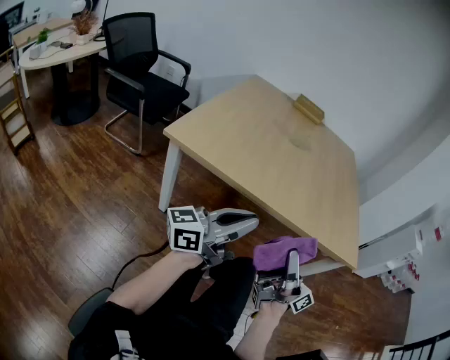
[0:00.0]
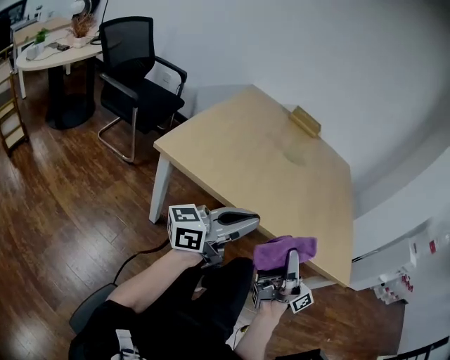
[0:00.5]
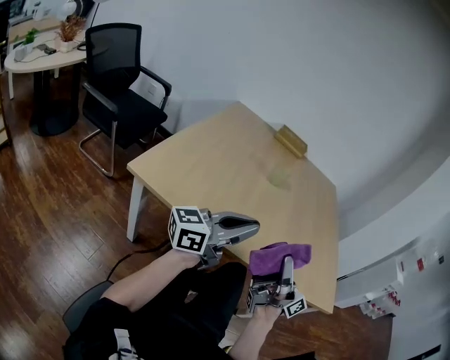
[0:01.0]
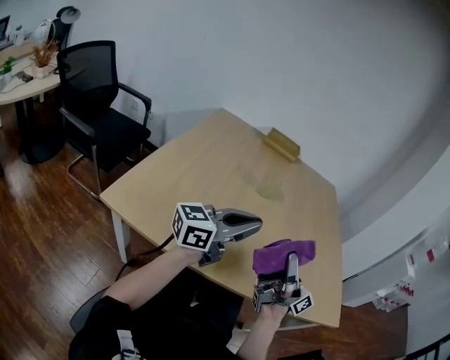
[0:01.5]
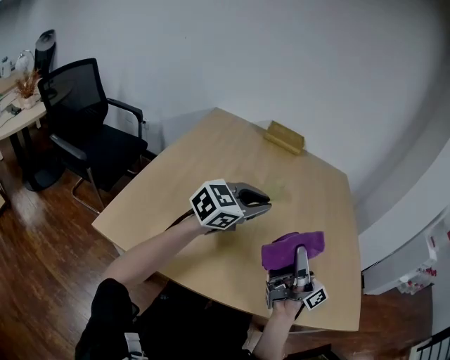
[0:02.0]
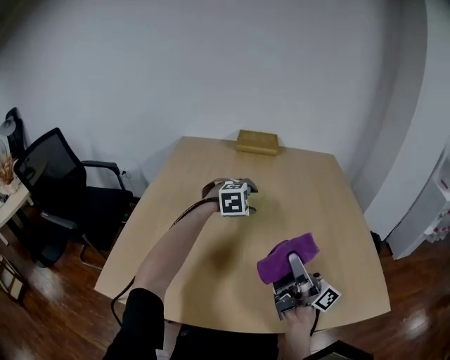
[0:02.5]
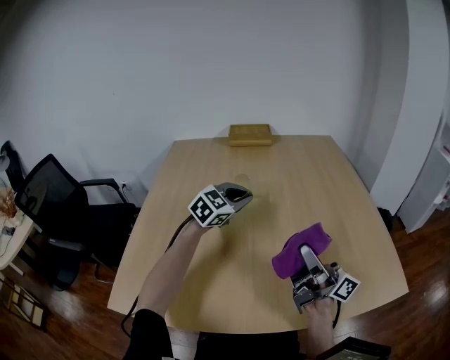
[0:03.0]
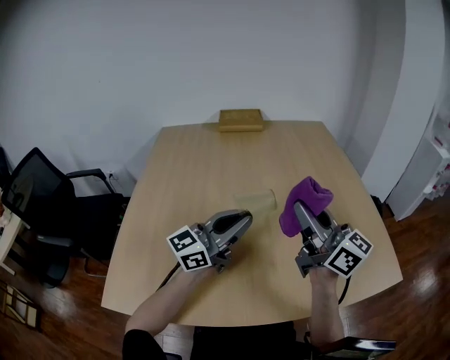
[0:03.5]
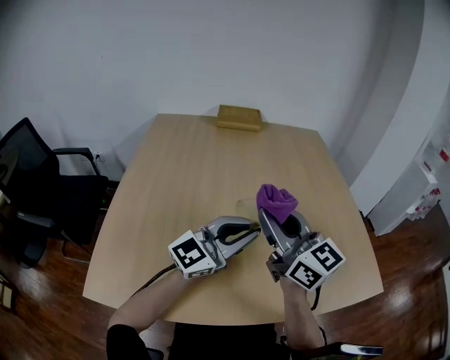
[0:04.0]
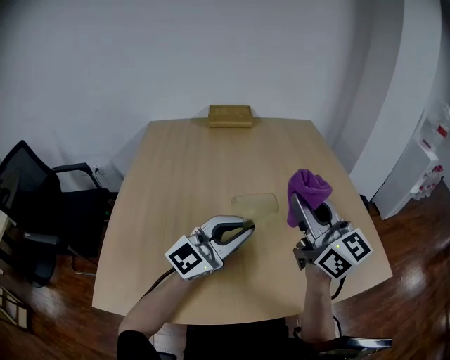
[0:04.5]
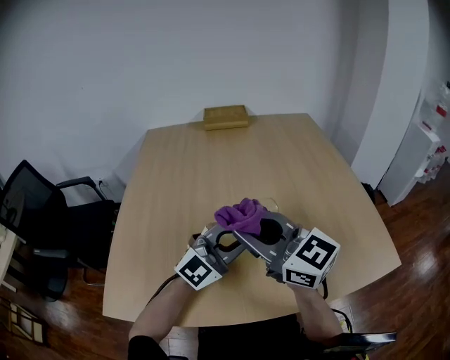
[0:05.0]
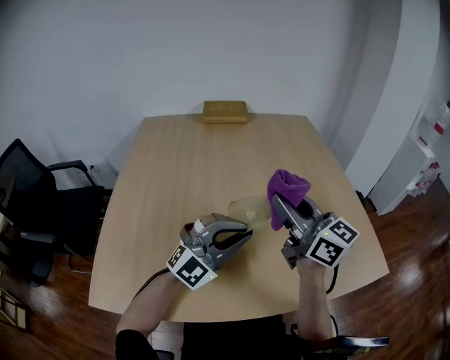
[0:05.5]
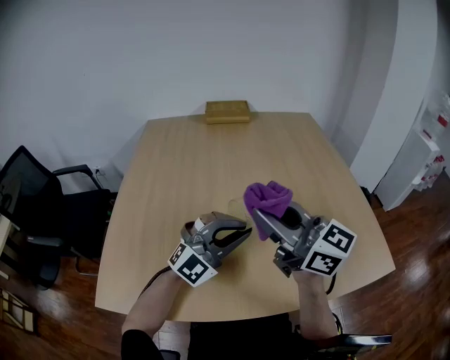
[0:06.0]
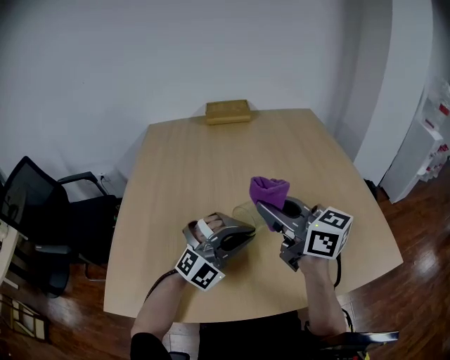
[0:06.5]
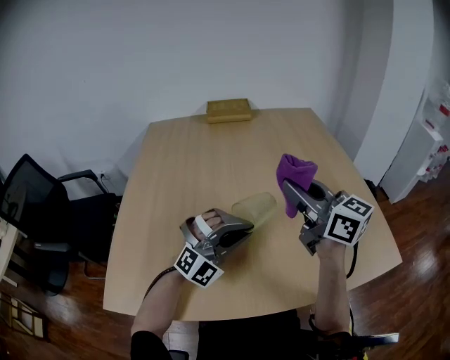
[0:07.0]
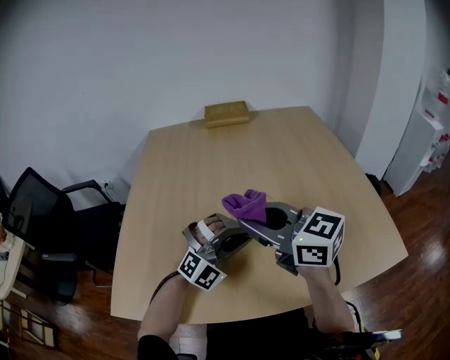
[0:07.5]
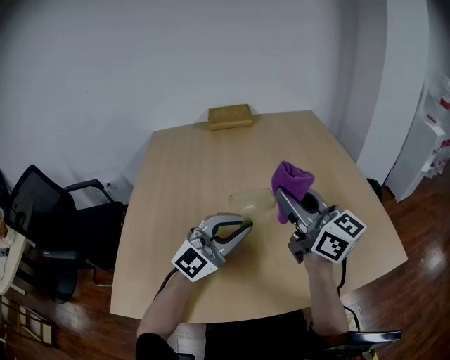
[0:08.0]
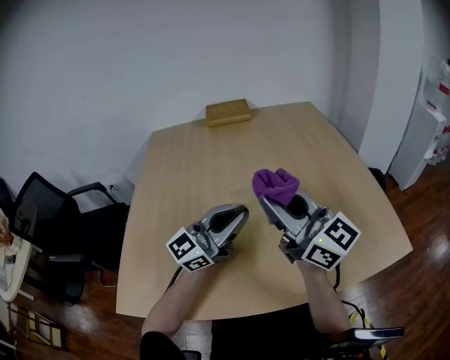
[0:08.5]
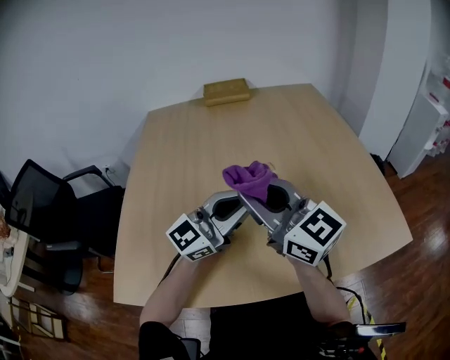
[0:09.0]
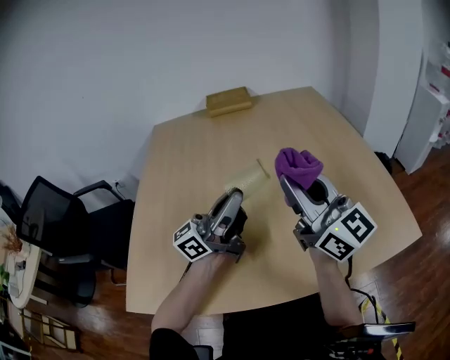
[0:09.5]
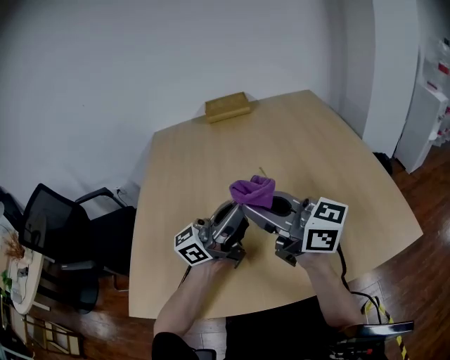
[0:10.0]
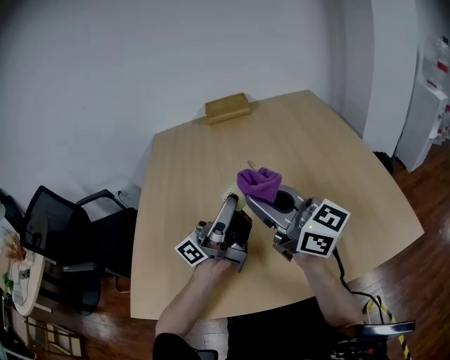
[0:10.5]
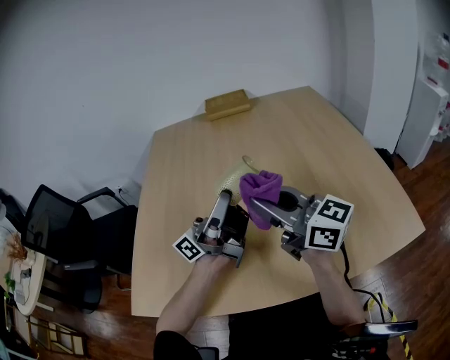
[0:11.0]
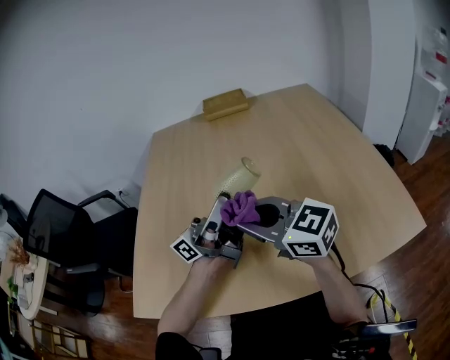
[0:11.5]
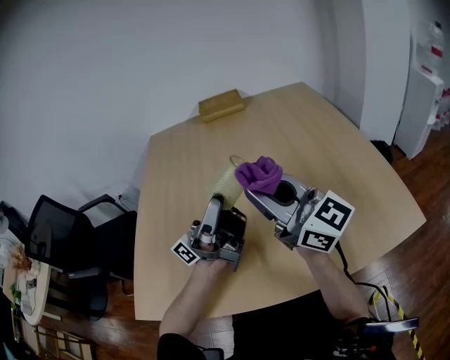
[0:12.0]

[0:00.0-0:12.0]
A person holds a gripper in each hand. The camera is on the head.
0:00.0 to 0:02.0: The grippers both shift forward by about 35 cm. The left gripper angles its fingers downward, by approximately 40 degrees.
0:02.0 to 0:04.0: The right gripper is displaced to the left, upward and forward by some 10 cm, and twists approximately 50 degrees counterclockwise, seen from behind. The left gripper goes forward and returns, some 15 cm each way, rotates about 30 degrees, and opens, then closes once more.
0:04.0 to 0:06.0: The right gripper moves left and right over roughly 10 cm, changing direction 3 times; the left gripper moves downward, roughly 5 cm, and swivels approximately 40 degrees.
0:06.0 to 0:08.0: The right gripper goes left and right, some 10 cm each way, reversing 2 times.
0:08.0 to 0:10.0: The left gripper shifts by some 5 cm, and twists about 60 degrees counterclockwise, seen from behind. Meanwhile the right gripper goes left and right, roughly 10 cm each way, reversing 2 times, and changes its angle by some 20 degrees.
0:10.0 to 0:12.0: The left gripper changes place by about 5 cm, and swivels about 30 degrees.

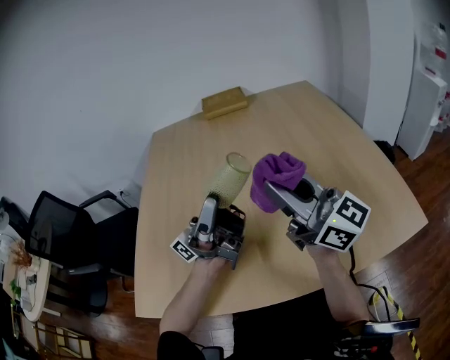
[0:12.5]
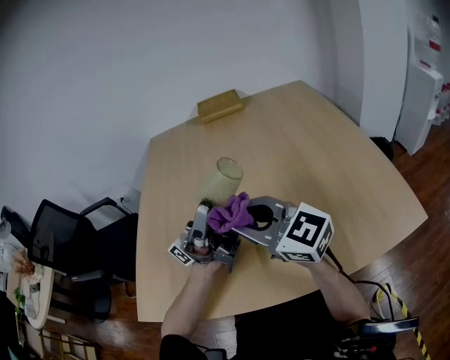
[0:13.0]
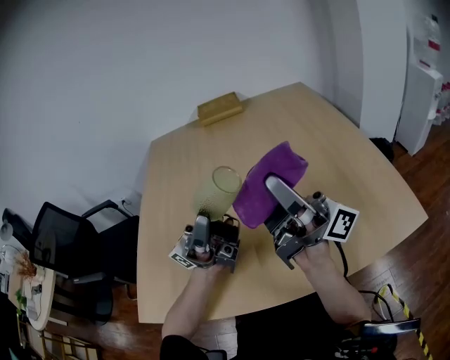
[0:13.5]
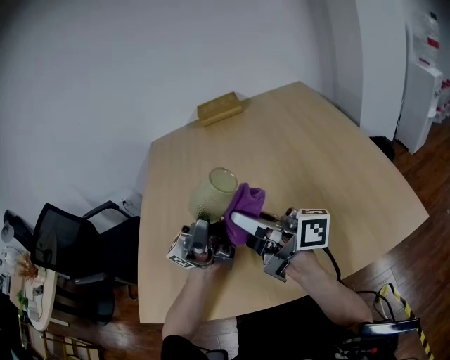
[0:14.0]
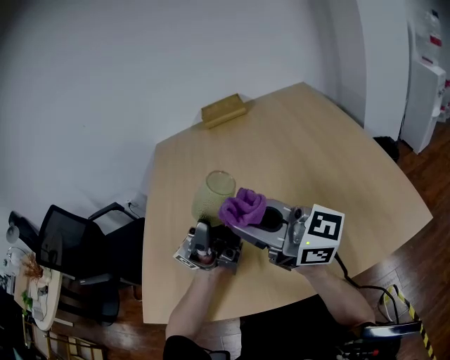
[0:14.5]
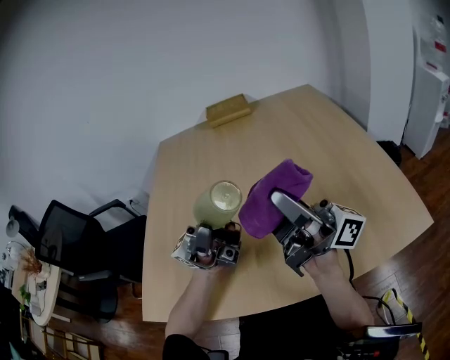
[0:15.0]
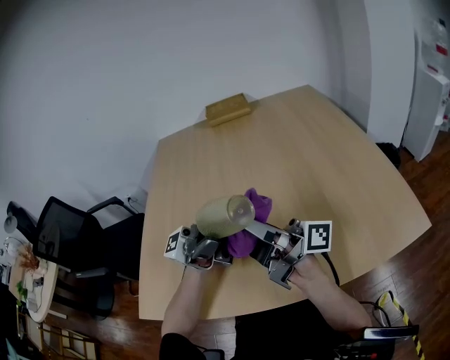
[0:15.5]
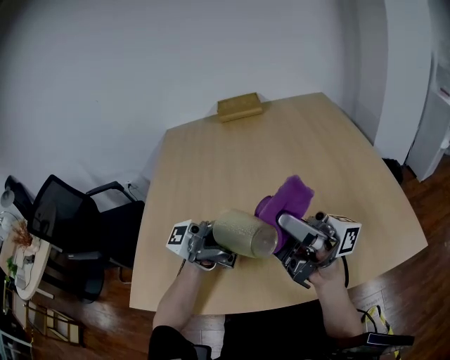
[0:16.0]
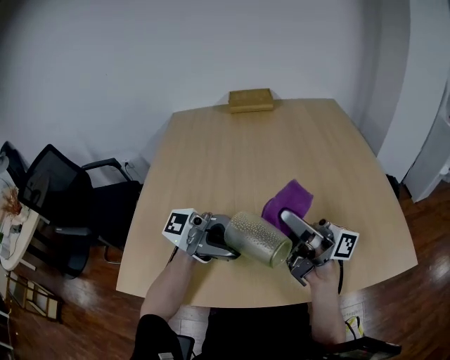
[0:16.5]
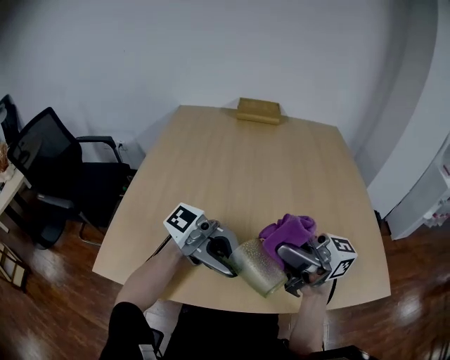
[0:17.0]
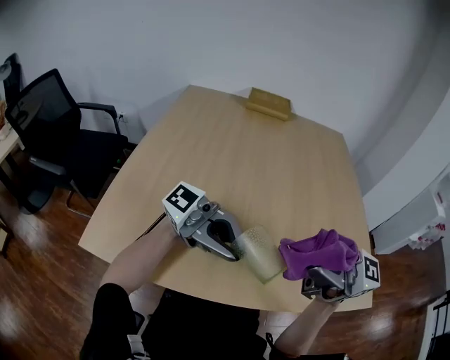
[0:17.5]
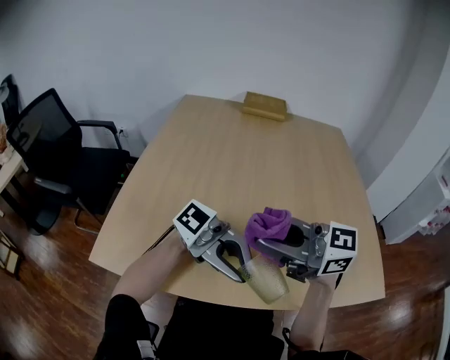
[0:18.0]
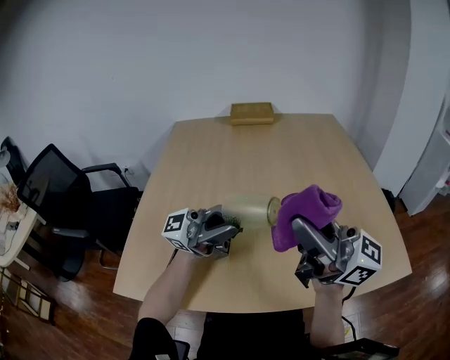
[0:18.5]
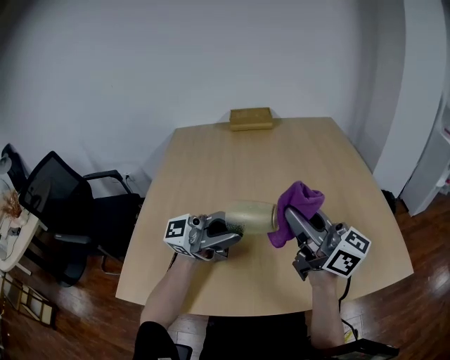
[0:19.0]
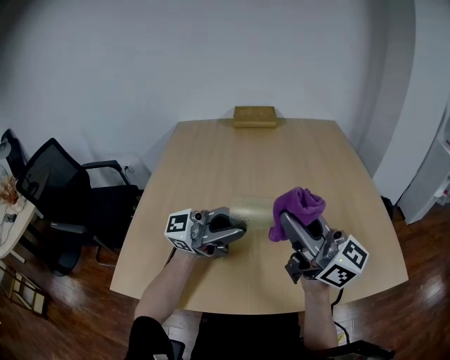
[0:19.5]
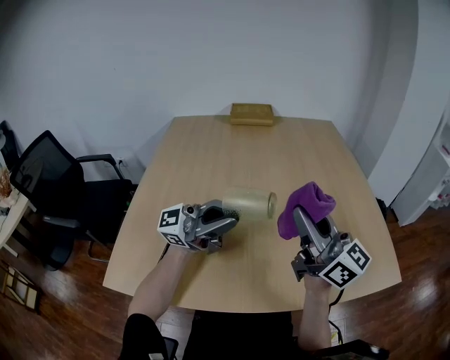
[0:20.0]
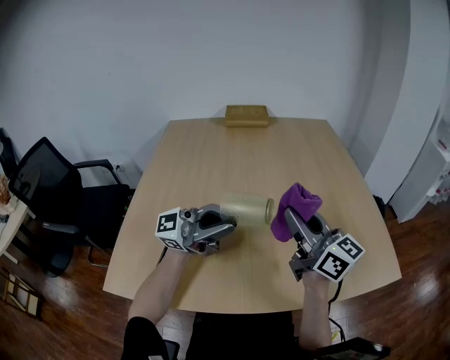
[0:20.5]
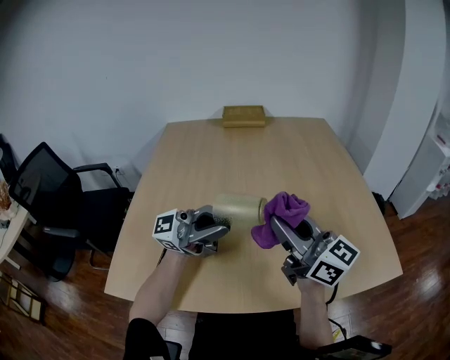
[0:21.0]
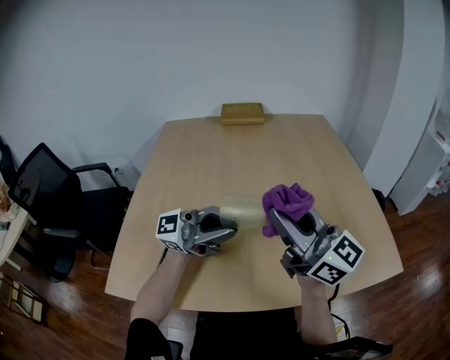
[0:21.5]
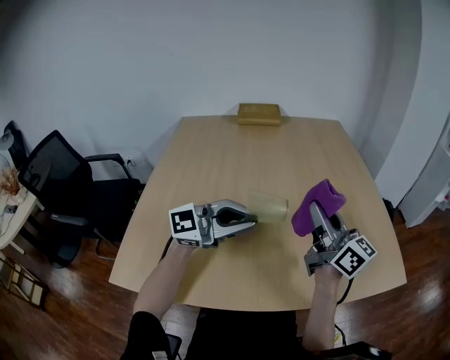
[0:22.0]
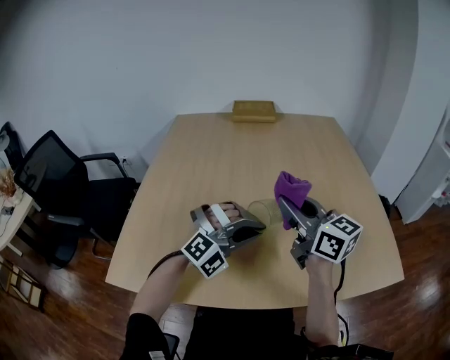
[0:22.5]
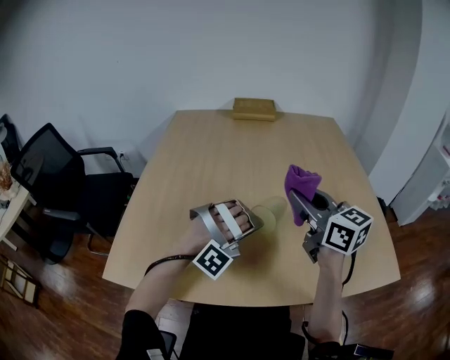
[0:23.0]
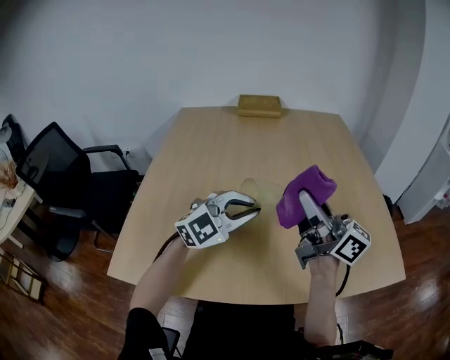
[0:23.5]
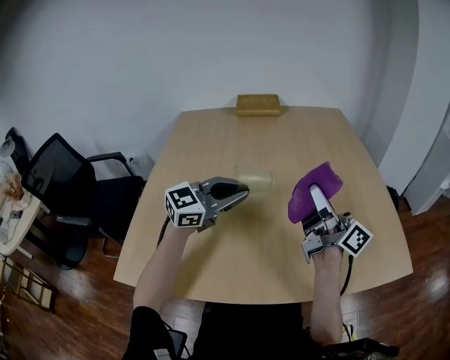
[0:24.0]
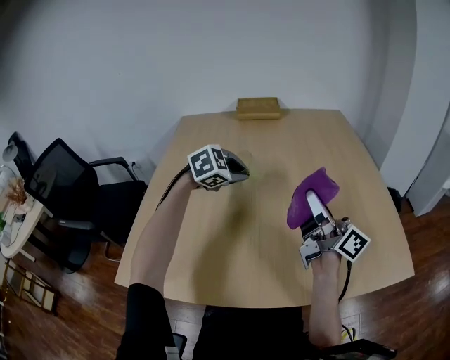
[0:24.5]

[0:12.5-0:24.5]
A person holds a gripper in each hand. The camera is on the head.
0:12.5 to 0:14.5: The right gripper moves up and down over roughly 10 cm, changing direction 3 times.
0:14.5 to 0:16.5: The left gripper shifts by about 10 cm, and points its fingers some 30 degrees further downward. The right gripper swings up and down, about 5 cm each way, with 2 reversals, and rotates around the line of its fingers by about 40 degrees, clockwise from behind.
0:16.5 to 0:18.5: The left gripper goes downward and returns, about 5 cm each way, while the right gripper moves up and down over approximately 10 cm, changing direction 2 times, and rotates around the line of its fingers by roughly 40 degrees, counterclockwise from behind.
0:18.5 to 0:20.5: The right gripper travels downward by about 10 cm, and turns by approximately 30 degrees.
0:20.5 to 0:22.5: The left gripper is displaced downward by about 15 cm, and angles its fingers downward, by some 50 degrees.
0:22.5 to 0:24.5: The left gripper goes approximately 20 cm forward and to the left, and rotates around the line of its fingers by about 50 degrees, counterclockwise from behind; the right gripper shifts some 5 cm to the right, and rotates about 40 degrees.

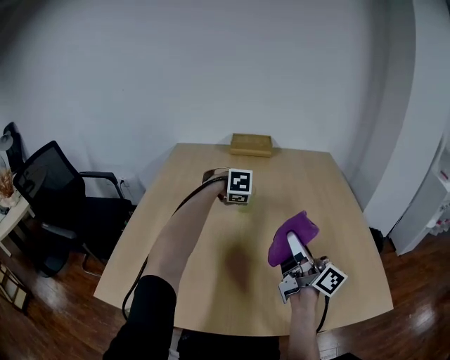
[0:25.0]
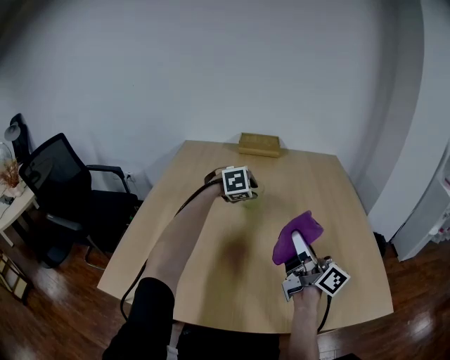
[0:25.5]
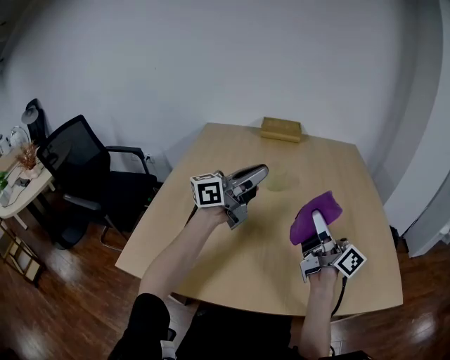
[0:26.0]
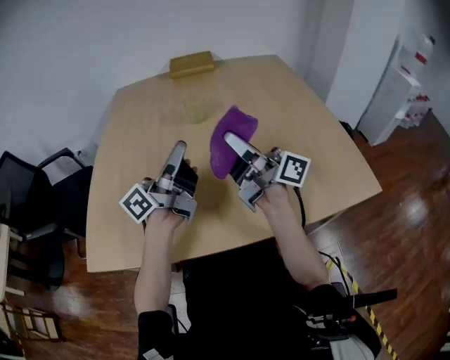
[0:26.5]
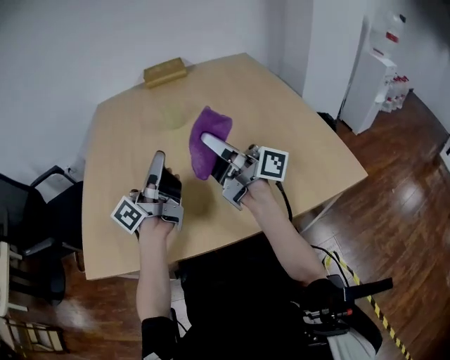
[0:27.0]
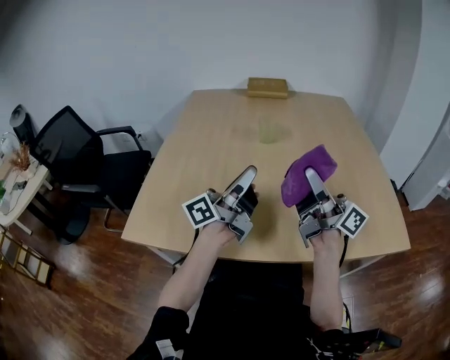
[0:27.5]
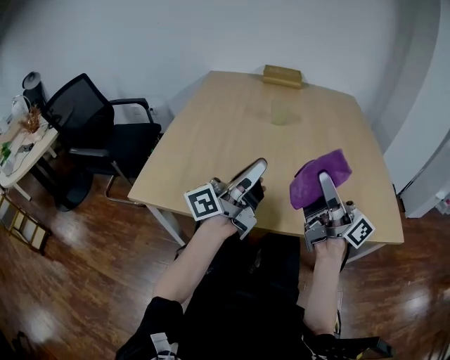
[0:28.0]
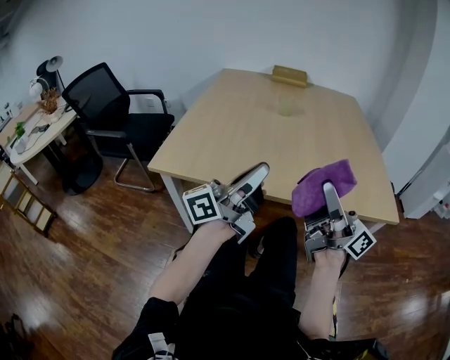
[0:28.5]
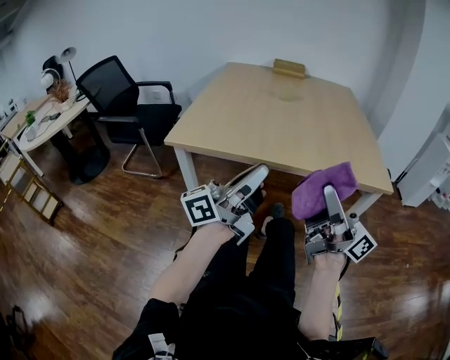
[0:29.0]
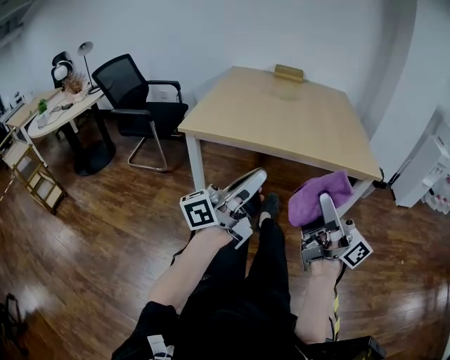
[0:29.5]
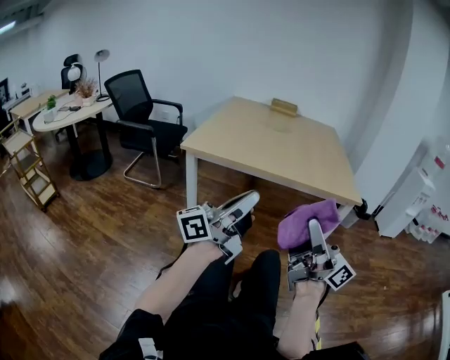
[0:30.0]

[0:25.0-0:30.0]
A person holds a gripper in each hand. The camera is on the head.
0:25.0 to 0:27.5: The left gripper is displaced backward and upward by roughly 30 cm, and tips its fingers upward by some 100 degrees; the right gripper heads backward, covering approximately 5 cm, and reaches about 10 cm to the left, then returns.
0:27.5 to 0:30.0: The pair of grippers is taken backward, about 60 cm.
